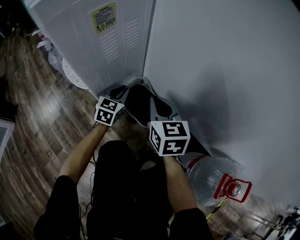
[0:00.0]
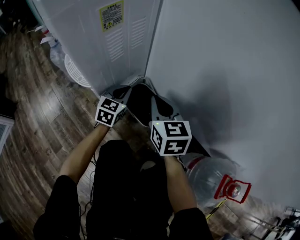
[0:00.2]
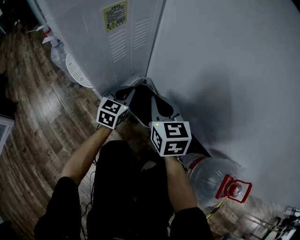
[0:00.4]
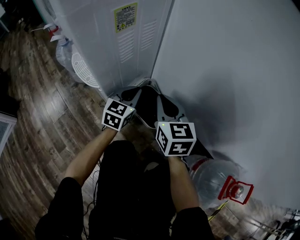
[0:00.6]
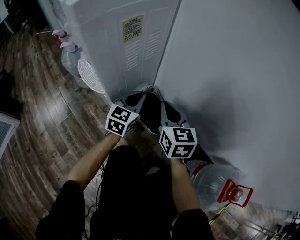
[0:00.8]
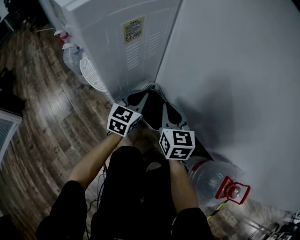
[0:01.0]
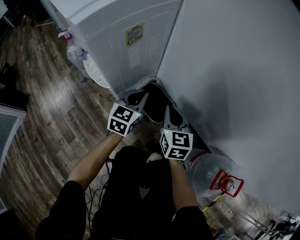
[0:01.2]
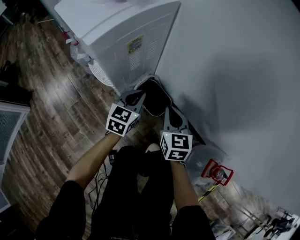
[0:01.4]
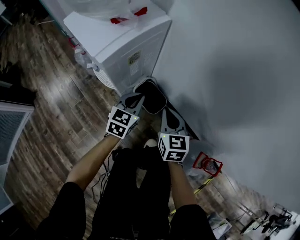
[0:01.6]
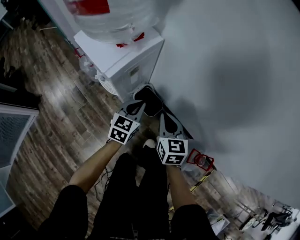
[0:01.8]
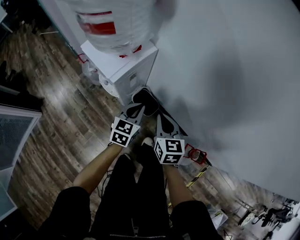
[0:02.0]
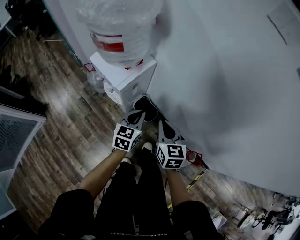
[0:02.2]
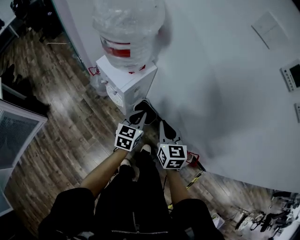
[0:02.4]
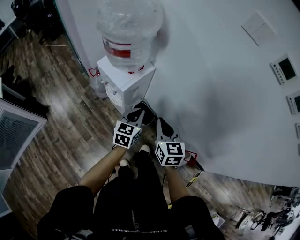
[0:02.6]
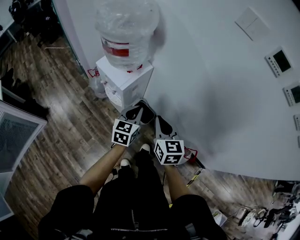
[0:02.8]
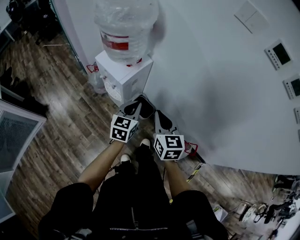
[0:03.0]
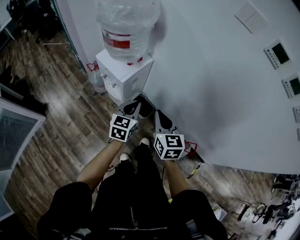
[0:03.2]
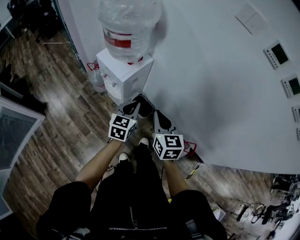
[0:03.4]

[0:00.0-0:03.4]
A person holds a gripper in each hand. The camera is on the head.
0.0 to 1.6 s: The right gripper is displaced upward and backward by approximately 20 cm, while the left gripper shifts about 25 cm upward and backward.
1.6 to 3.4 s: The left gripper moves upward and backward, about 35 cm. Meanwhile the right gripper heads upward, covering about 35 cm.

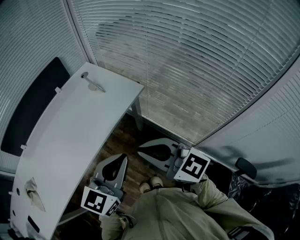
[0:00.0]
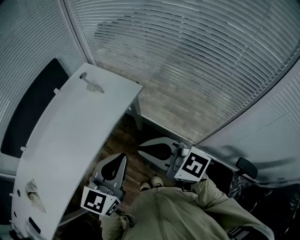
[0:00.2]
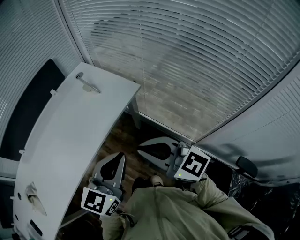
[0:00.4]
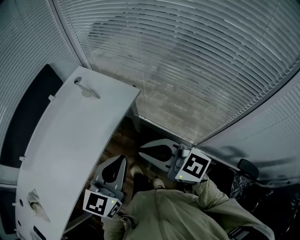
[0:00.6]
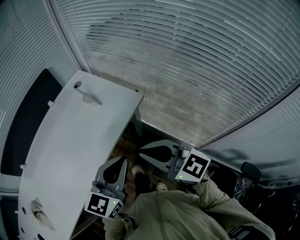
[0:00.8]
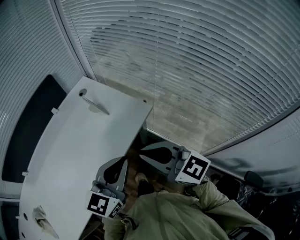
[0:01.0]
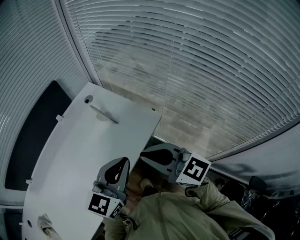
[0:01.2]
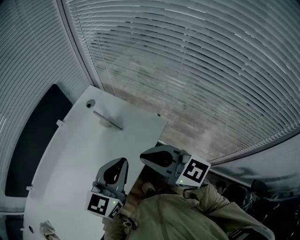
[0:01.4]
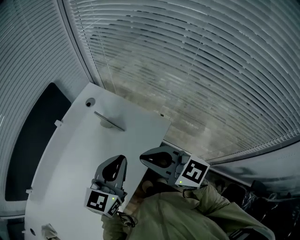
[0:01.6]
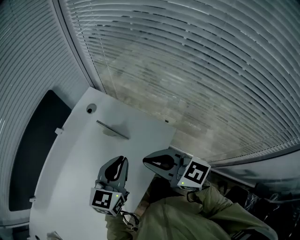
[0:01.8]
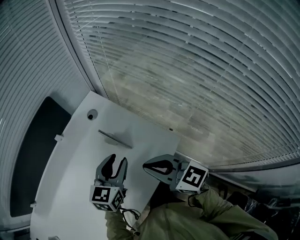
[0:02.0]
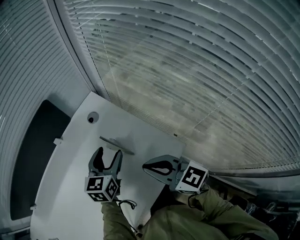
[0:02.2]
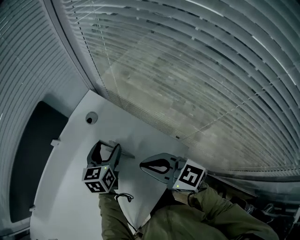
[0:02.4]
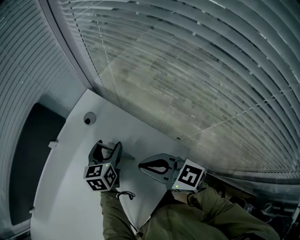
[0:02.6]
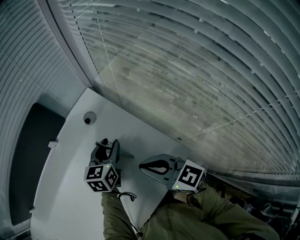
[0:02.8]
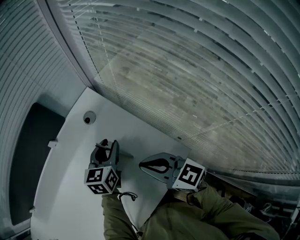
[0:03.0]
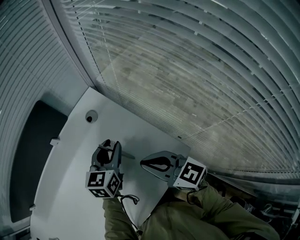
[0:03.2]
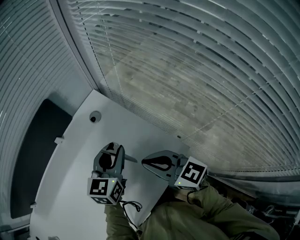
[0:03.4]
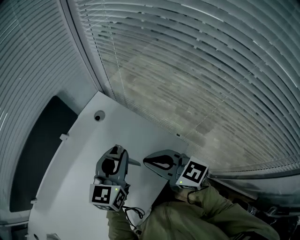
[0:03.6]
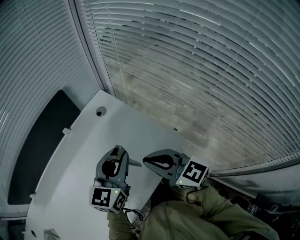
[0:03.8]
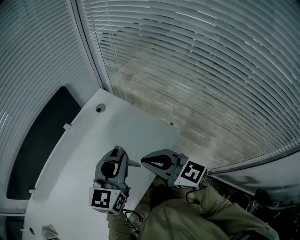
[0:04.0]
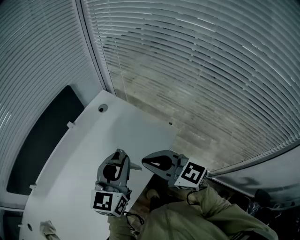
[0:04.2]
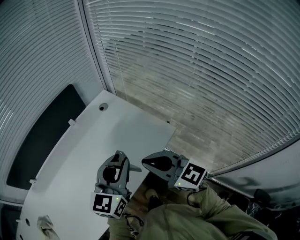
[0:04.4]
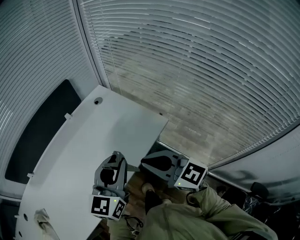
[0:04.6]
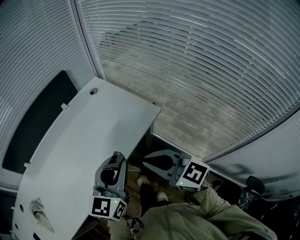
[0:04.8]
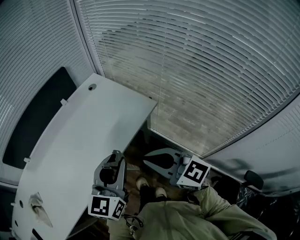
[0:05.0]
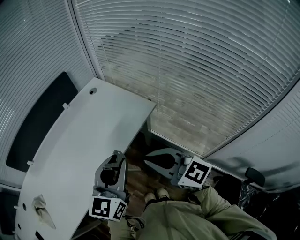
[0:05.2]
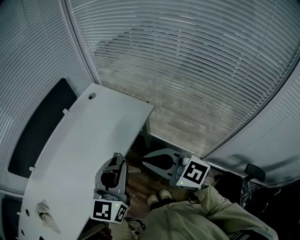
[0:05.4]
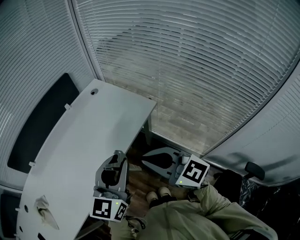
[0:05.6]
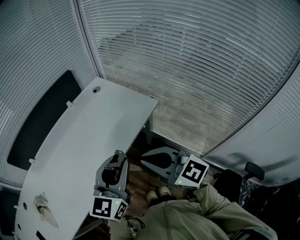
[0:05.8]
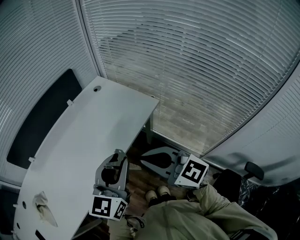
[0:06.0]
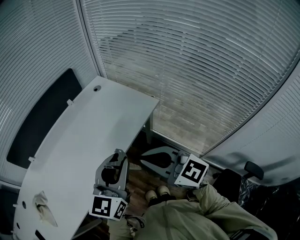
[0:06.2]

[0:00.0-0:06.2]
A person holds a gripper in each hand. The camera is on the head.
0.0 to 1.6 s: Both grippers move forward, about 30 cm.
1.6 to 3.2 s: Both grippers move forward and downward, approximately 20 cm. The left gripper swivels approximately 20 degrees, and opens up.
3.2 to 4.6 s: Both grippers travel together backward and upward, about 30 cm. The left gripper changes its angle by about 20 degrees.
4.6 to 6.2 s: Both grippers travel together backward, roughly 15 cm.

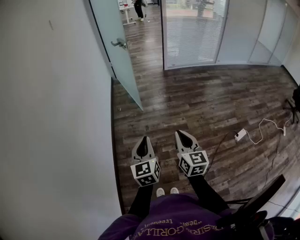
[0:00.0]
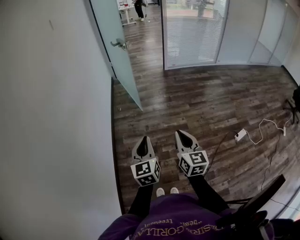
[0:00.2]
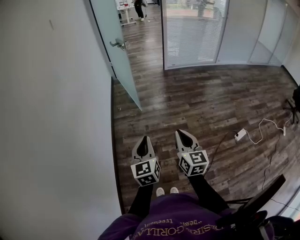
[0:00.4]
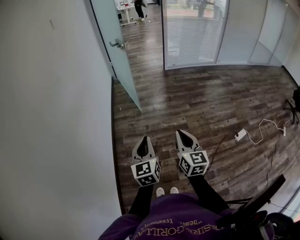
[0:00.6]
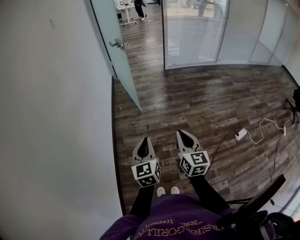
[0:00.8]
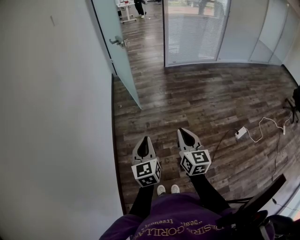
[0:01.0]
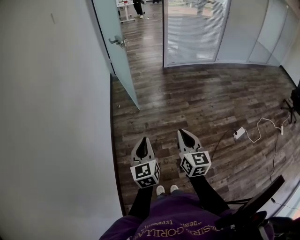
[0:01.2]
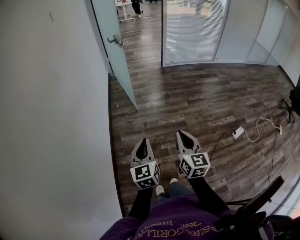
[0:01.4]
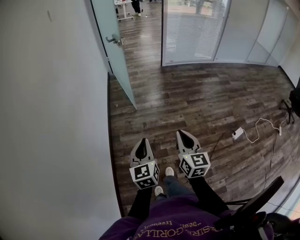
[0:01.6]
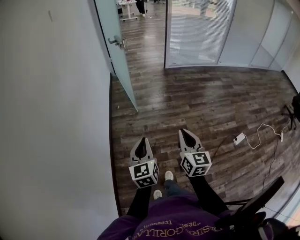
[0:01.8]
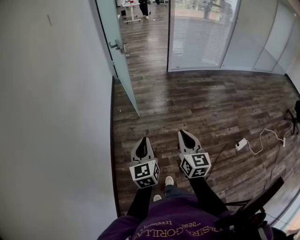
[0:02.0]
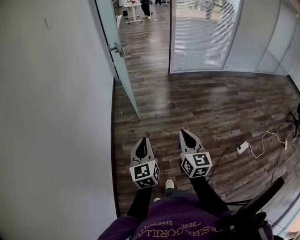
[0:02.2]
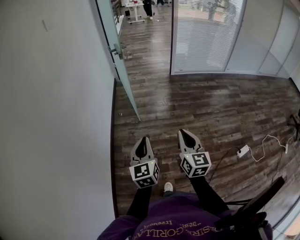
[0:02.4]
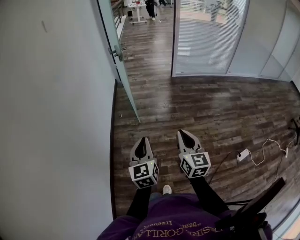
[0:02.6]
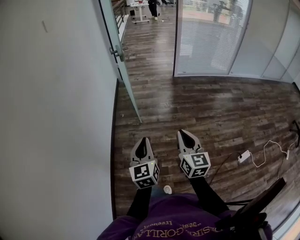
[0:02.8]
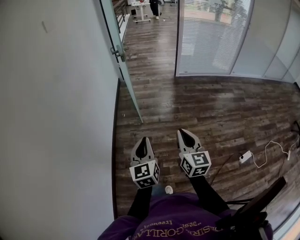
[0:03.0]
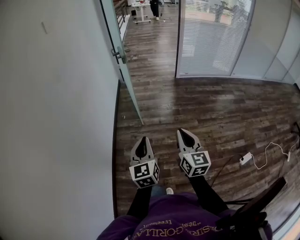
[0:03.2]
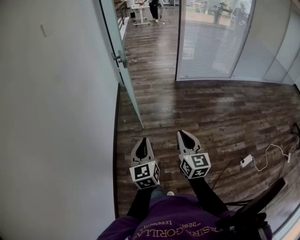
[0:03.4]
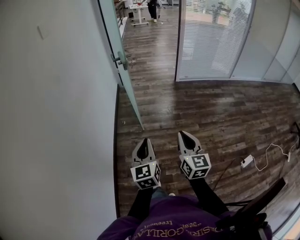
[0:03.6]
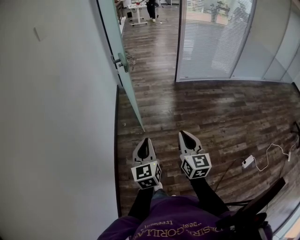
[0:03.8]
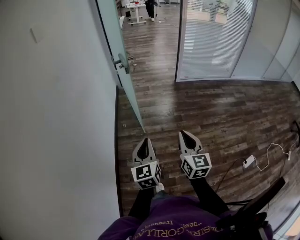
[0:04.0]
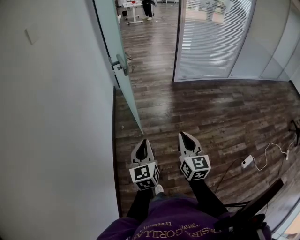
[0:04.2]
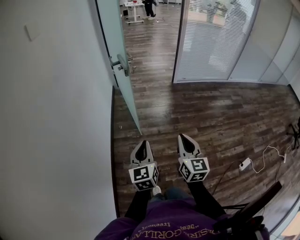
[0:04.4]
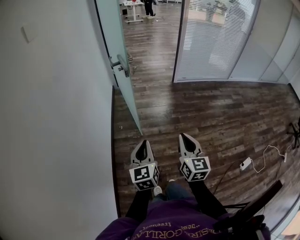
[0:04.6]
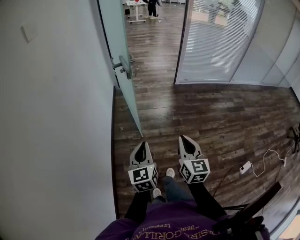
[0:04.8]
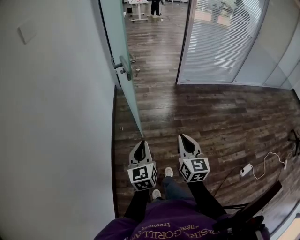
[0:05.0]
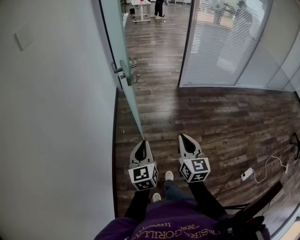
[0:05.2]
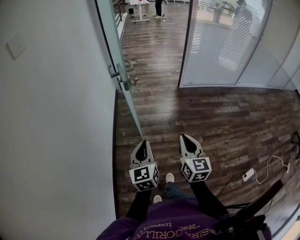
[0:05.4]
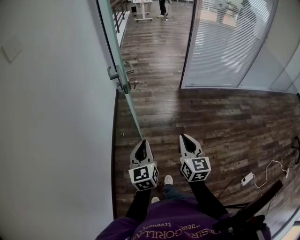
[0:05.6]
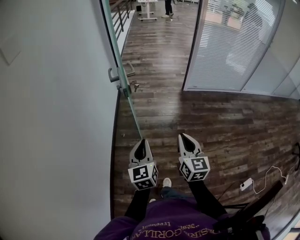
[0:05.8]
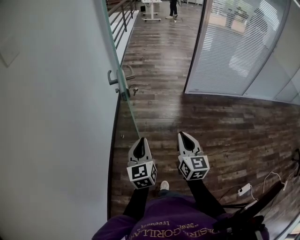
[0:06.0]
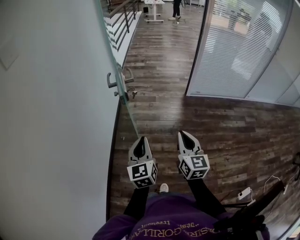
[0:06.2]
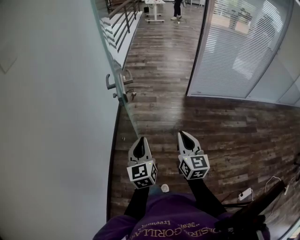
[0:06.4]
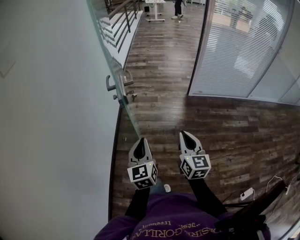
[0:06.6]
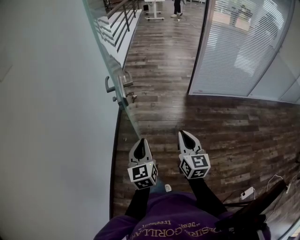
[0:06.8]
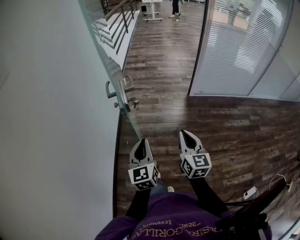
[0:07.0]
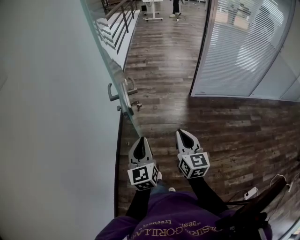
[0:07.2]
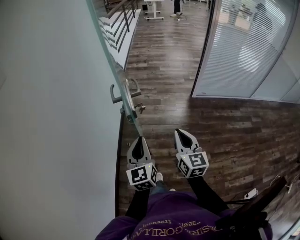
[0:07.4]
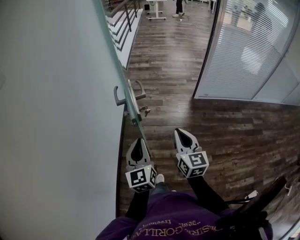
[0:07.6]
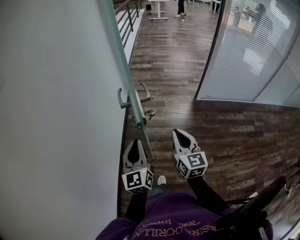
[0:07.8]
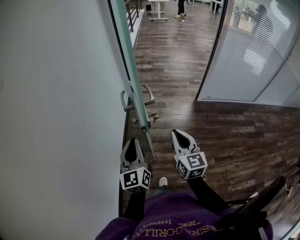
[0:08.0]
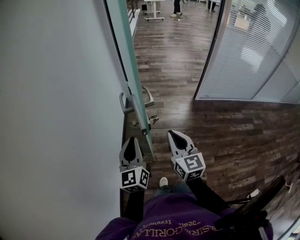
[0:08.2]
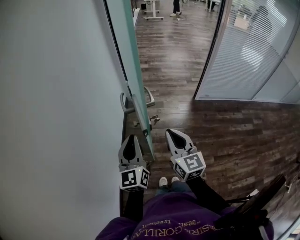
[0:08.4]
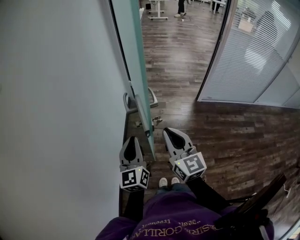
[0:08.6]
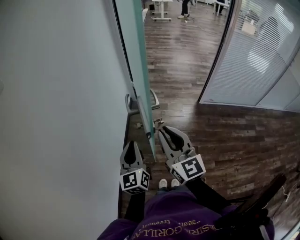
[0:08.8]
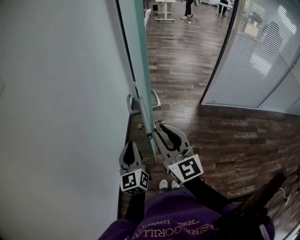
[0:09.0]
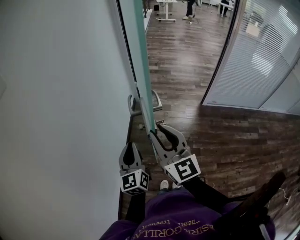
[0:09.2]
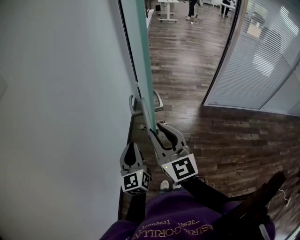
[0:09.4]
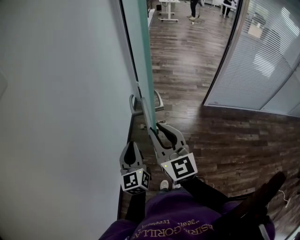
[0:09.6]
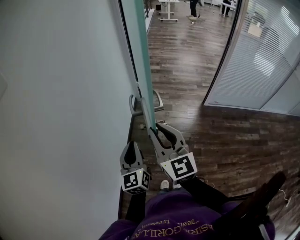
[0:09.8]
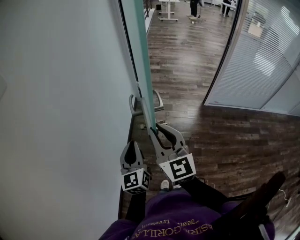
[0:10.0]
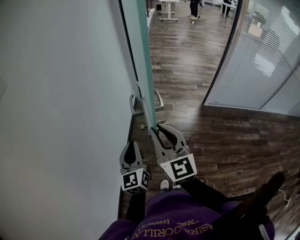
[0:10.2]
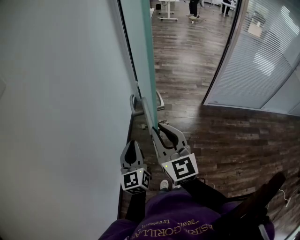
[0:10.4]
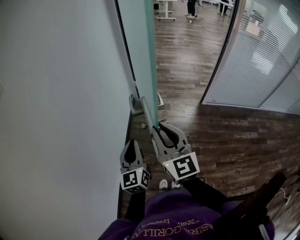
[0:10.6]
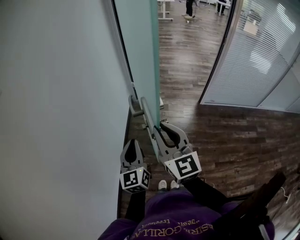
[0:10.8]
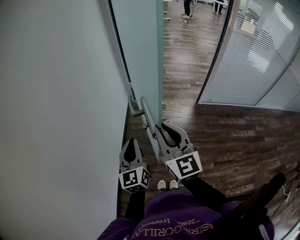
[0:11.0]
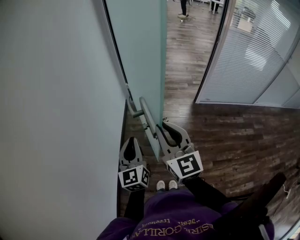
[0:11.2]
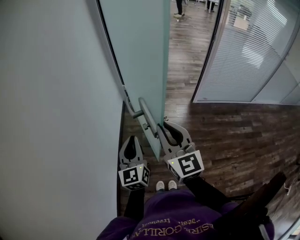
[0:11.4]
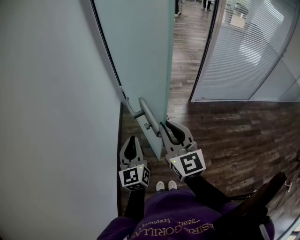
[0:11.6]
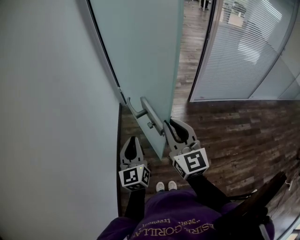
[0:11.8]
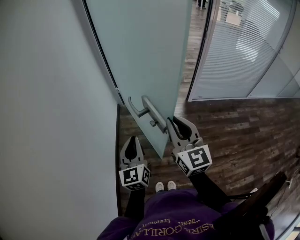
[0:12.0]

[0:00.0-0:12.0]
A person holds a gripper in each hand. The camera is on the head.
0.0 to 1.6 s: The grippers make only small movements.
1.6 to 3.0 s: Both grippers travel together forward, about 20 cm.
3.0 to 4.4 s: Both grippers travel together forward, some 15 cm.
4.4 to 6.0 s: Both grippers move forward, some 25 cm.
6.0 to 7.6 s: The left gripper moves forward and to the left, approximately 15 cm. Meanwhile the right gripper shifts approximately 15 cm forward.
7.6 to 9.0 s: The right gripper heads to the left, upward and forward, covering roughly 15 cm, and turns by roughly 20 degrees, while the left gripper travels to the left and forward by roughly 10 cm.
9.0 to 10.4 s: The grippers stay close to where they were, moving slightly.
10.4 to 12.0 s: Both grippers move to the right, about 15 cm.

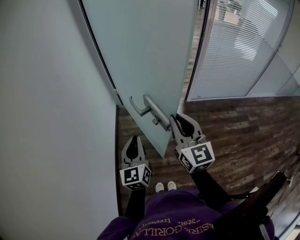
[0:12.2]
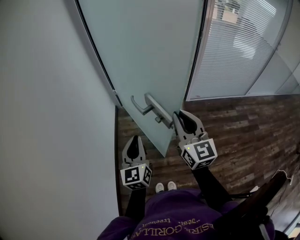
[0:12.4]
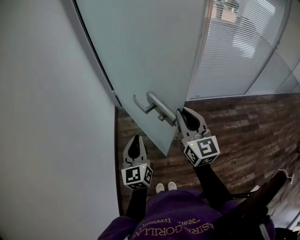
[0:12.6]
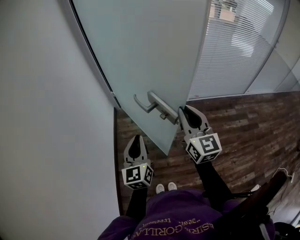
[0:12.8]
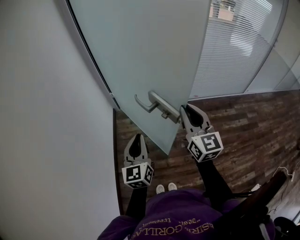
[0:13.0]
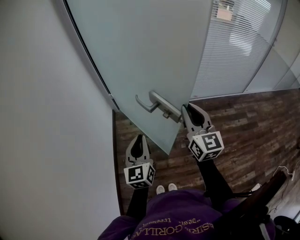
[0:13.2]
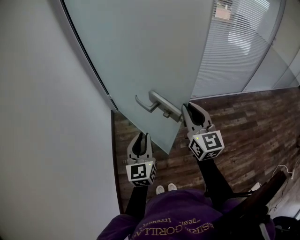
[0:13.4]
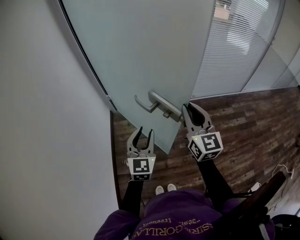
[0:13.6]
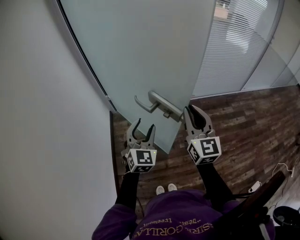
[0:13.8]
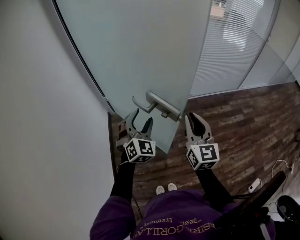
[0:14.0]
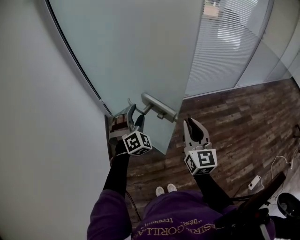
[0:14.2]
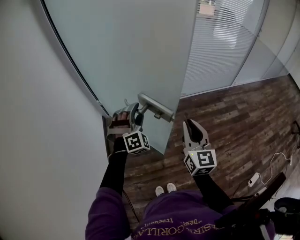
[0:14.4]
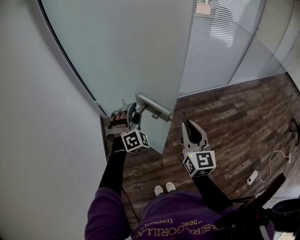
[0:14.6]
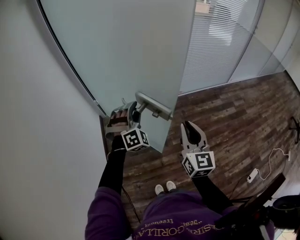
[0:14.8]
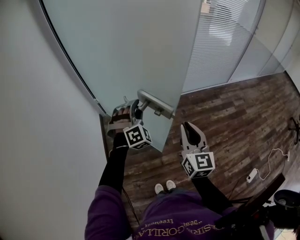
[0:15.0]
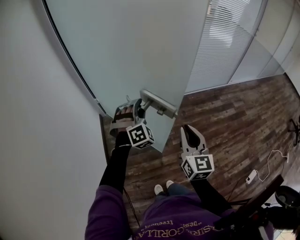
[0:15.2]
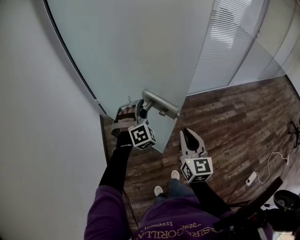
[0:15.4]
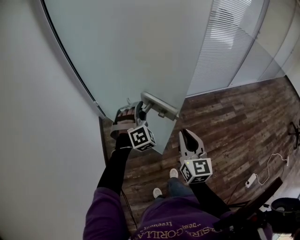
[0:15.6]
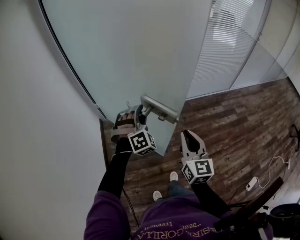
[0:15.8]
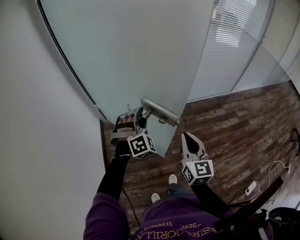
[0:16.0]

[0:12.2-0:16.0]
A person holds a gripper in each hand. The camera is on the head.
12.2 to 13.4 s: The left gripper travels to the right by some 10 cm. The right gripper goes roughly 15 cm to the right and forward.
13.4 to 14.8 s: The right gripper is displaced backward by some 5 cm. The left gripper shifts approximately 15 cm forward, rotates around the line of its fingers by about 80 degrees, clockwise from behind, and opens up.
14.8 to 16.0 s: The left gripper shifts by approximately 5 cm, while the right gripper changes place by approximately 5 cm.
